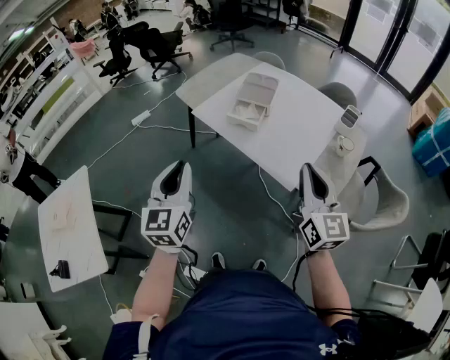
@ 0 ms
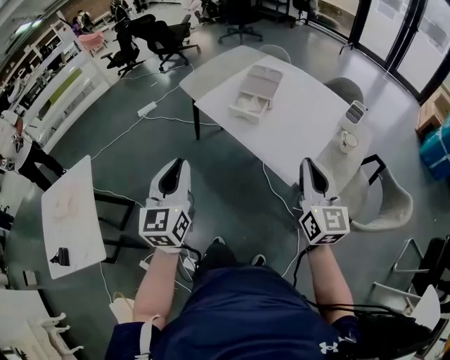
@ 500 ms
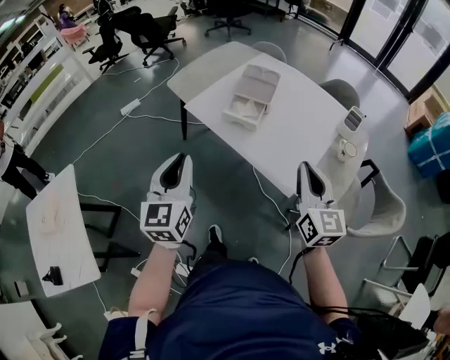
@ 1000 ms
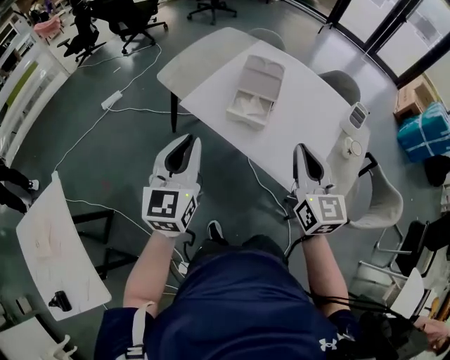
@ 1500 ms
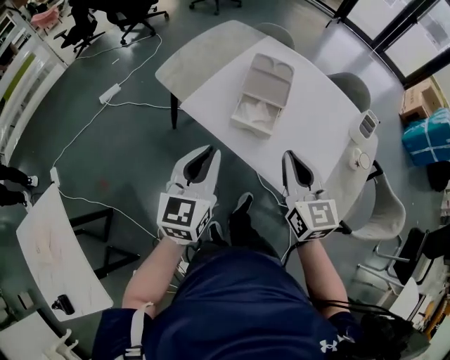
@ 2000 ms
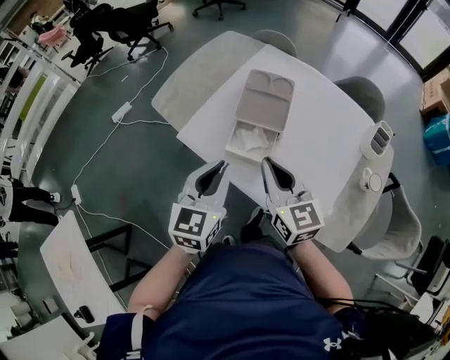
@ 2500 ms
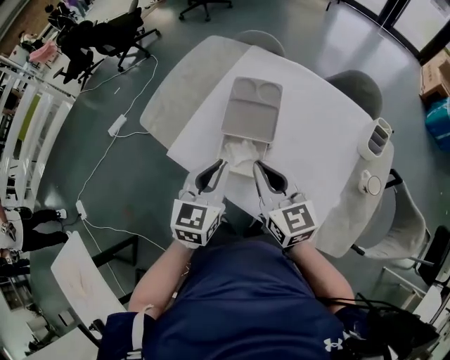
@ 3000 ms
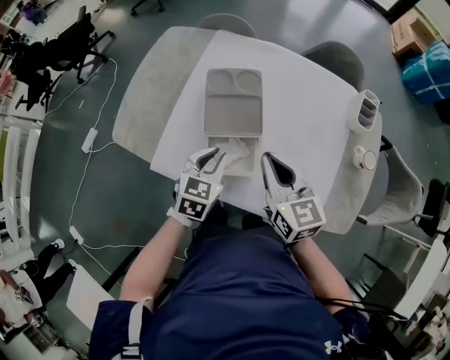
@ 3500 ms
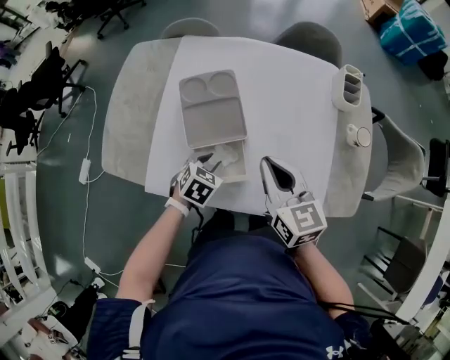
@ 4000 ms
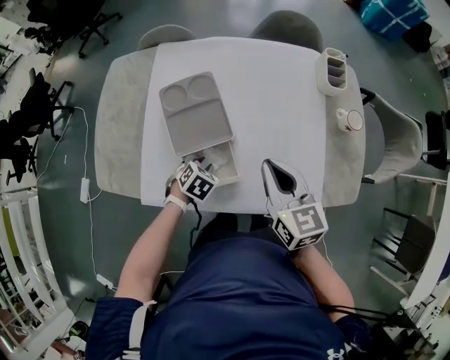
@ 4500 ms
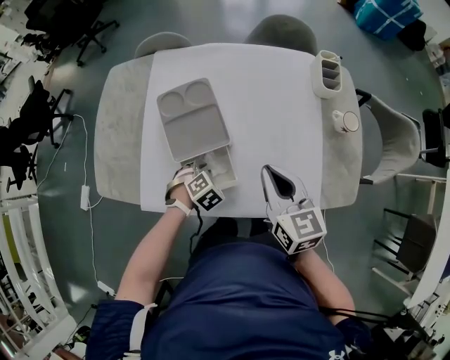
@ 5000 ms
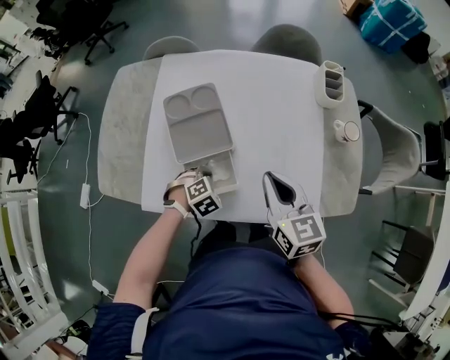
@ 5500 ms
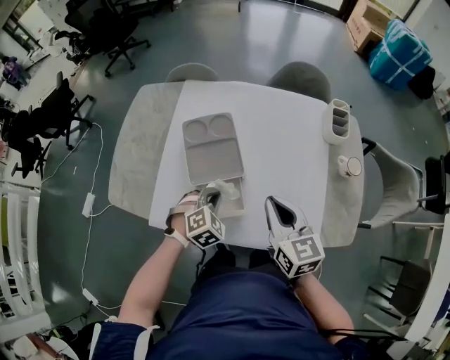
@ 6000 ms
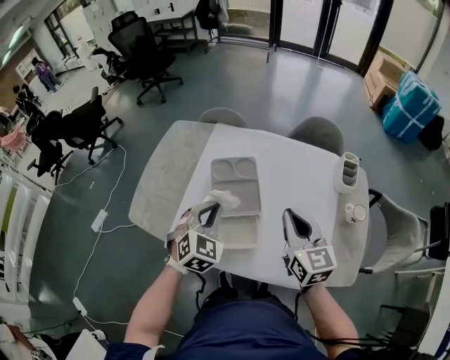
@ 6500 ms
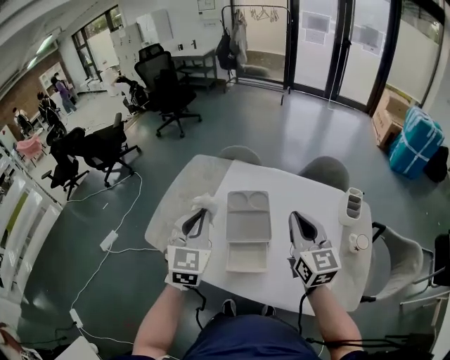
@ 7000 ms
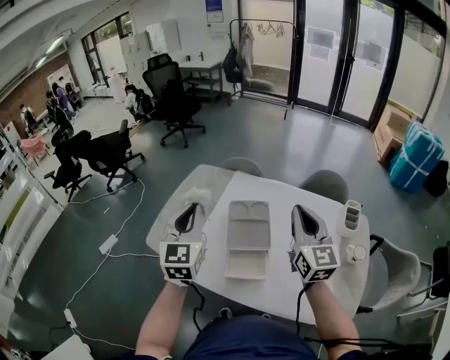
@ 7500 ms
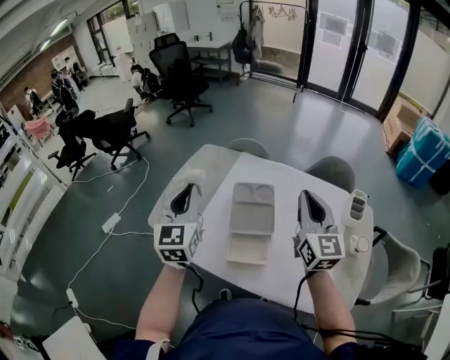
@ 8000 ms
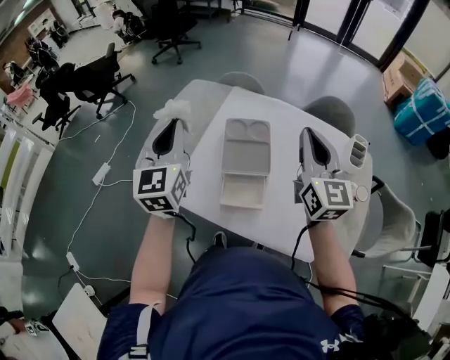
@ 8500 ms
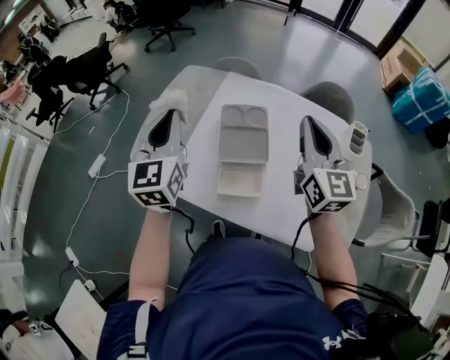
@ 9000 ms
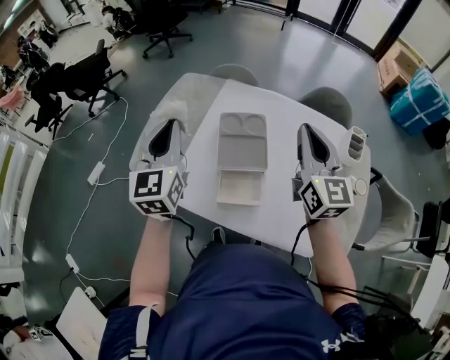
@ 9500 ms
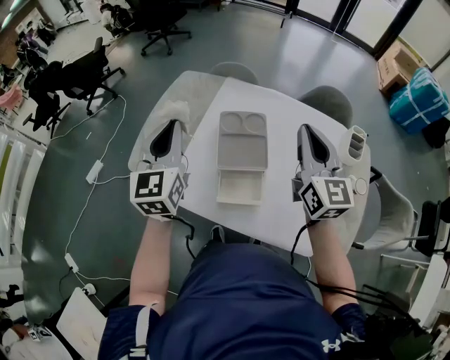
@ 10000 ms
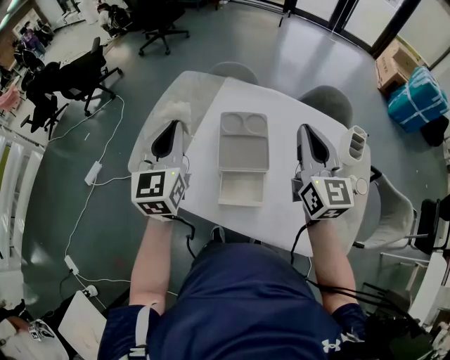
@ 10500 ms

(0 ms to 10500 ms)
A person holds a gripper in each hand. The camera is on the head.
0 ms - 2000 ms: The left gripper is displaced forward by roughly 25 cm. Meanwhile the right gripper heads forward and to the left, covering some 25 cm.
2000 ms - 4000 ms: The left gripper travels downward by some 25 cm, tips its fingers downward by approximately 50 degrees, and opens its fingers; the right gripper changes place by roughly 20 cm, and turns by some 30 degrees.
4000 ms - 6500 ms: The left gripper moves upward, some 20 cm, swivels roughly 40 degrees, and closes. The right gripper goes some 5 cm upward.
6500 ms - 8500 ms: The left gripper travels upward and to the left by approximately 20 cm, and turns by about 50 degrees, while the right gripper travels upward and forward by some 15 cm.
8500 ms - 10500 ms: There are only small adjustments of the grippers.

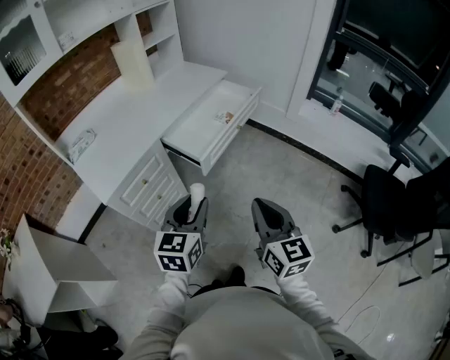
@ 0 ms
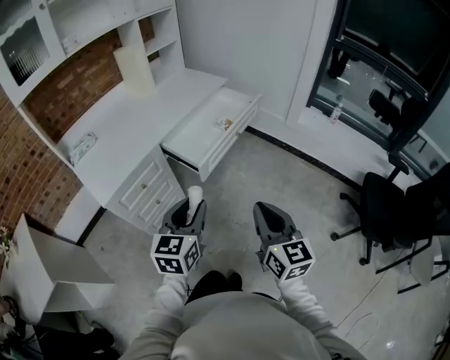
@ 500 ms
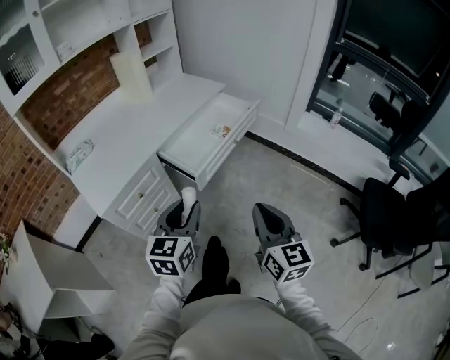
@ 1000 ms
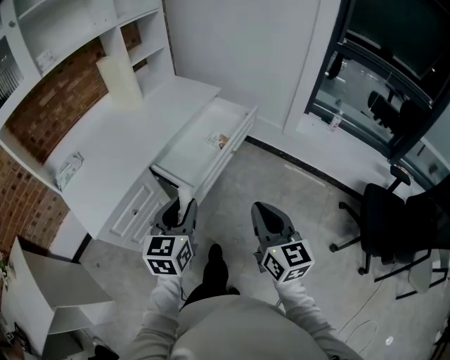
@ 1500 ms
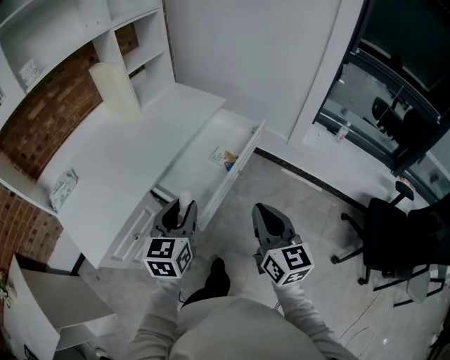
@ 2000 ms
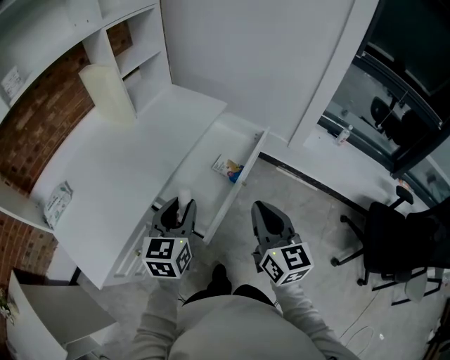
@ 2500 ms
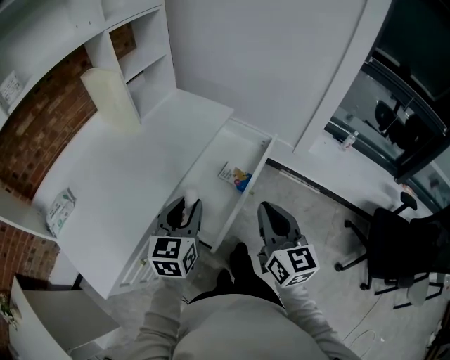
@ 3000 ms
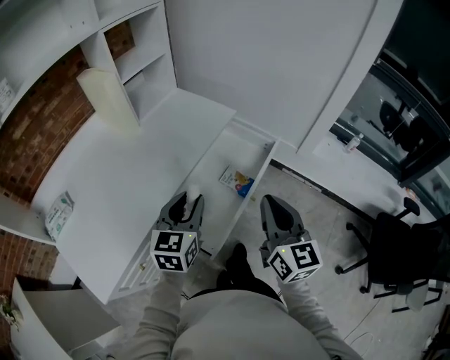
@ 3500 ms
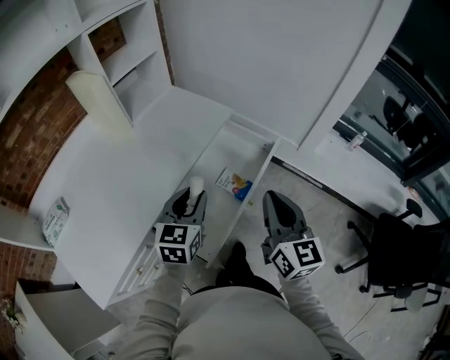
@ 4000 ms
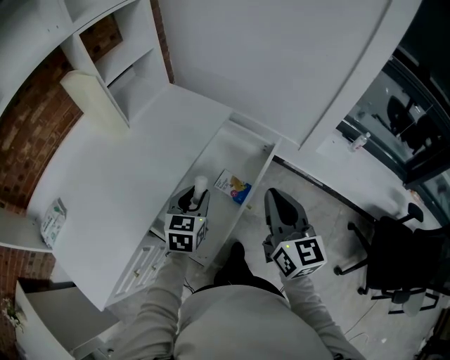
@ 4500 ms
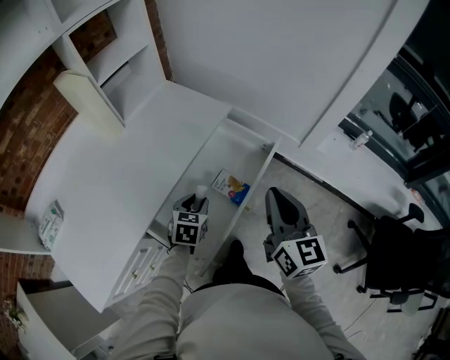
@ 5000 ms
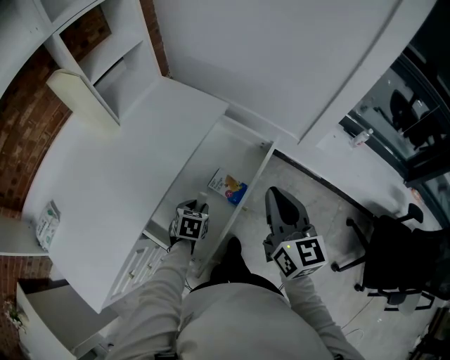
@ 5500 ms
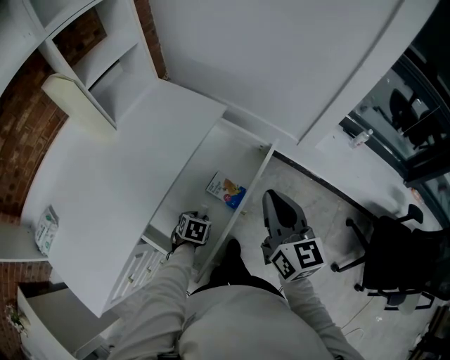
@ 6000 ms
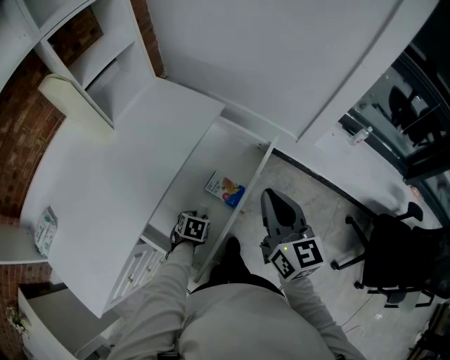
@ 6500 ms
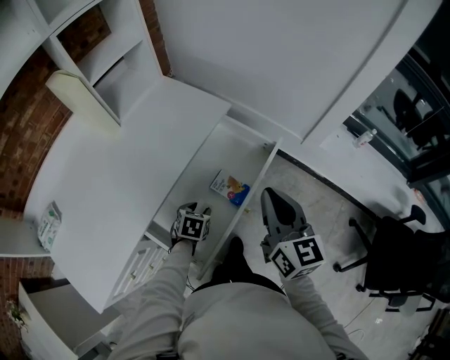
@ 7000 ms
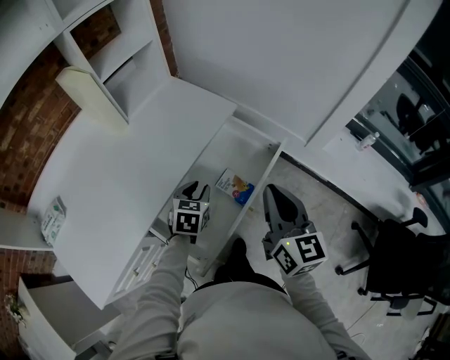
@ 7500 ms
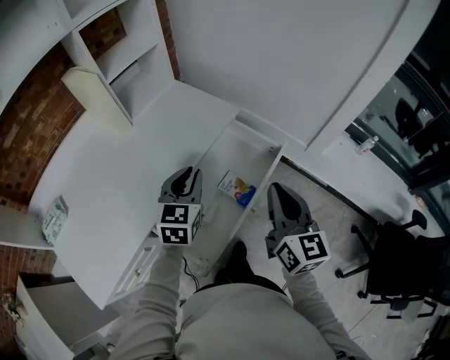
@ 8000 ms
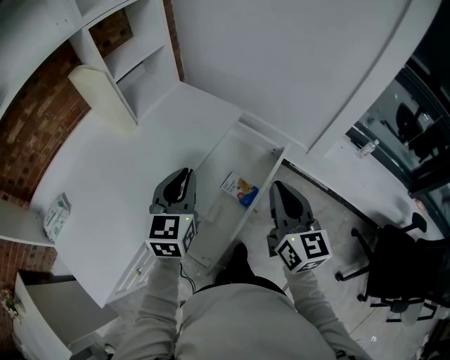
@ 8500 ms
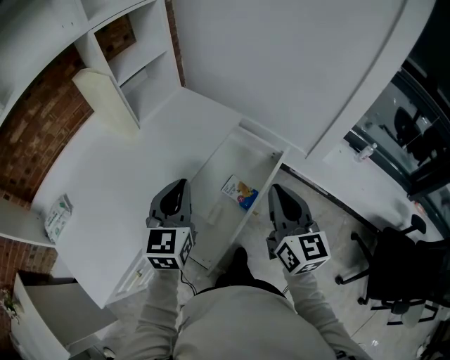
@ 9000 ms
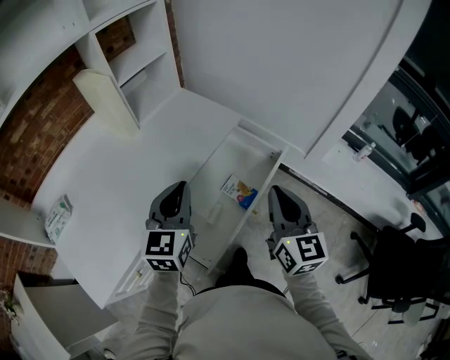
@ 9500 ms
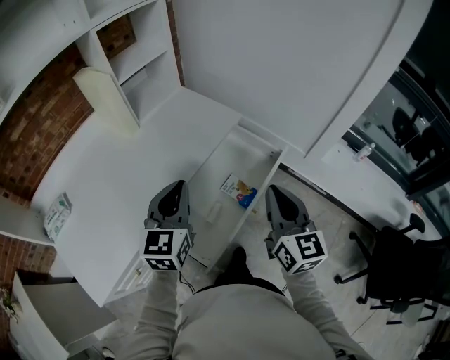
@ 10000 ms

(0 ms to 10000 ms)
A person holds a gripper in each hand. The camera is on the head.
0 ms - 2000 ms: The two grippers go roughly 25 cm forward.
2000 ms - 4000 ms: The grippers both shift forward by about 20 cm.
4000 ms - 6000 ms: The right gripper is displaced forward by some 10 cm. The left gripper goes about 30 cm downward, and tilts its fingers roughly 40 degrees downward.
6000 ms - 8000 ms: The left gripper goes about 30 cm upward, and tips its fingers upward by approximately 40 degrees.
8000 ms - 10000 ms: The left gripper travels backward and upward by some 10 cm.

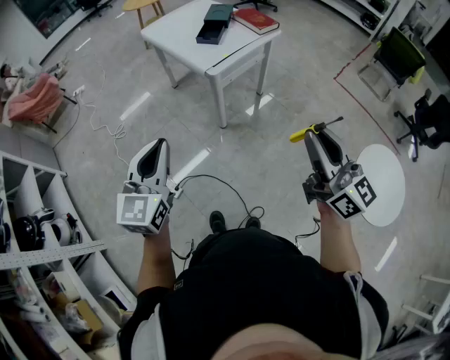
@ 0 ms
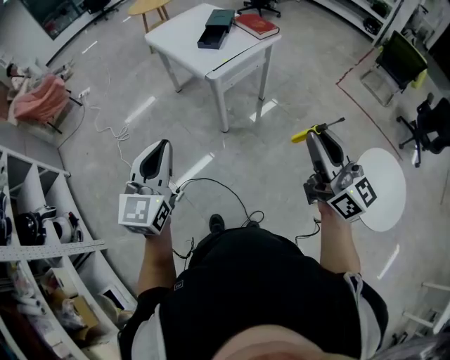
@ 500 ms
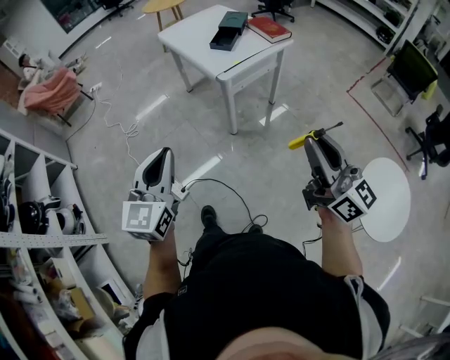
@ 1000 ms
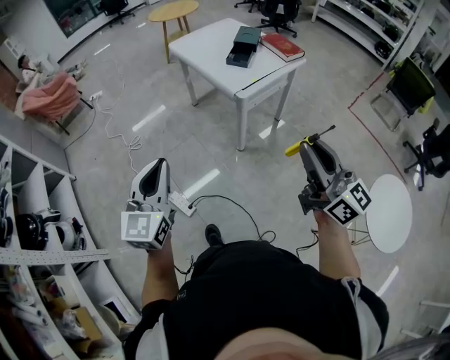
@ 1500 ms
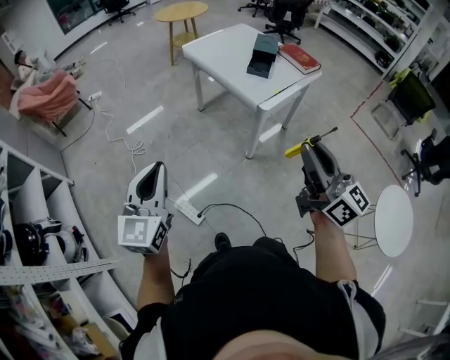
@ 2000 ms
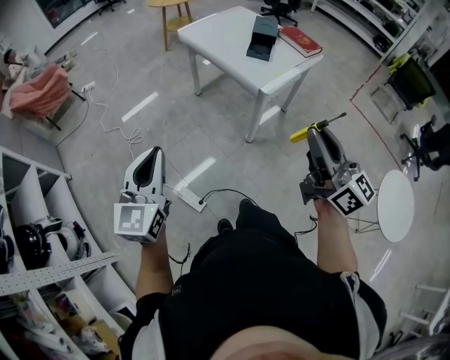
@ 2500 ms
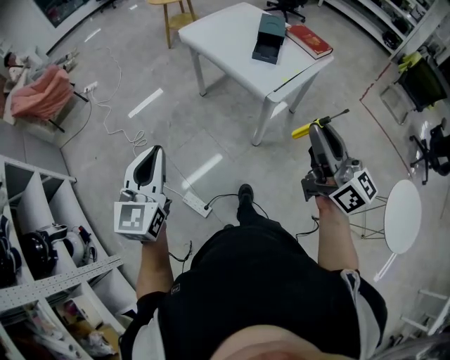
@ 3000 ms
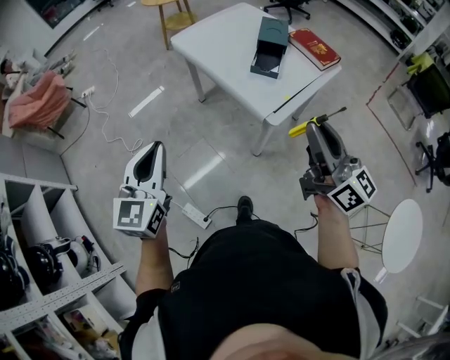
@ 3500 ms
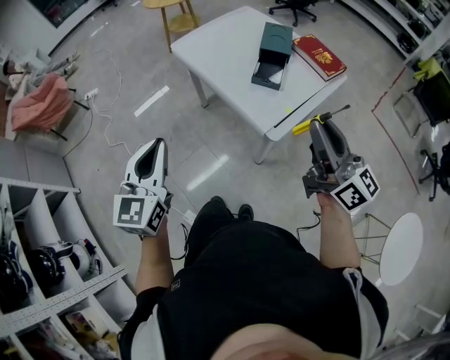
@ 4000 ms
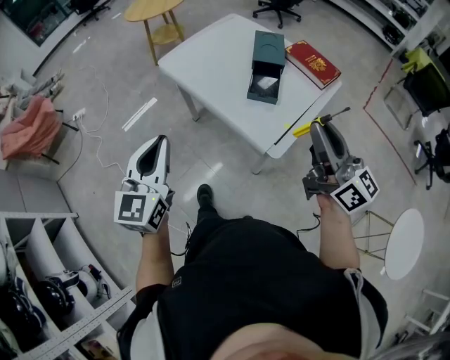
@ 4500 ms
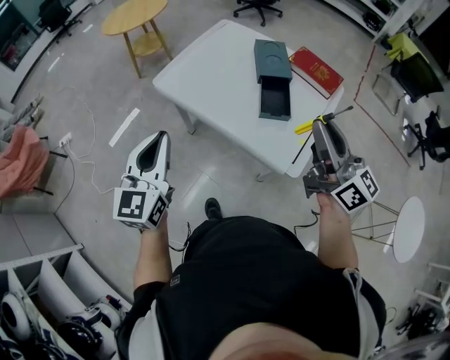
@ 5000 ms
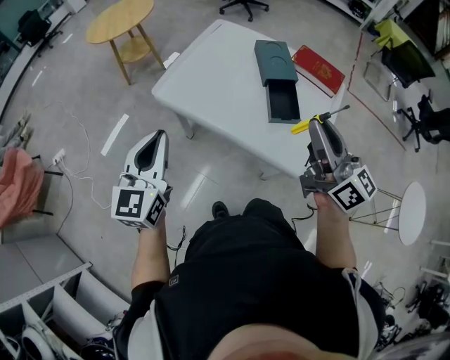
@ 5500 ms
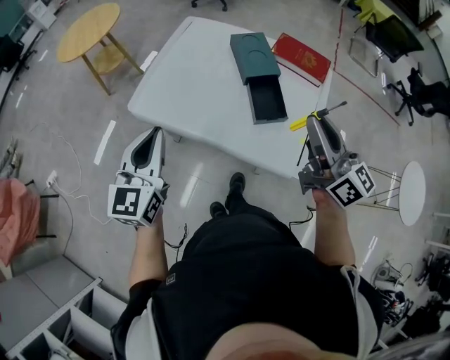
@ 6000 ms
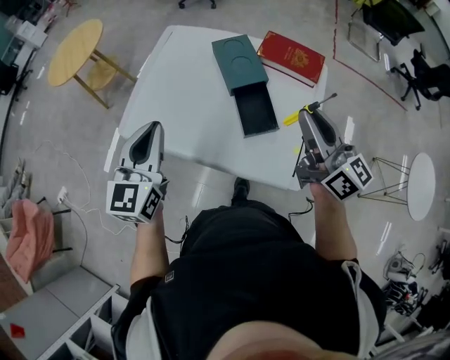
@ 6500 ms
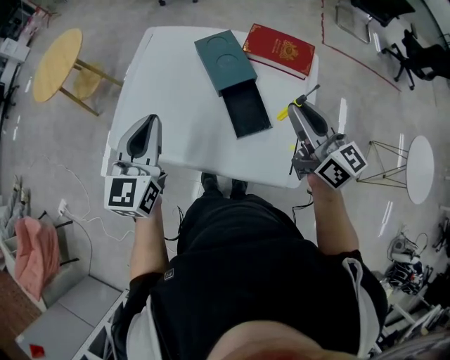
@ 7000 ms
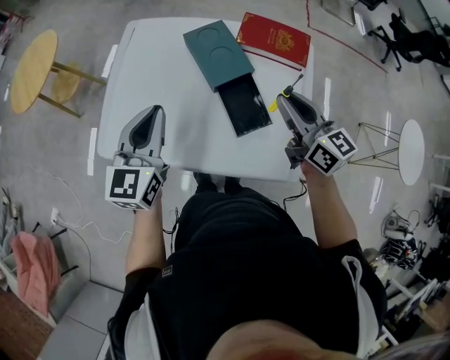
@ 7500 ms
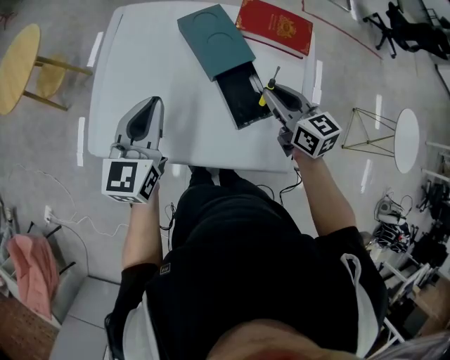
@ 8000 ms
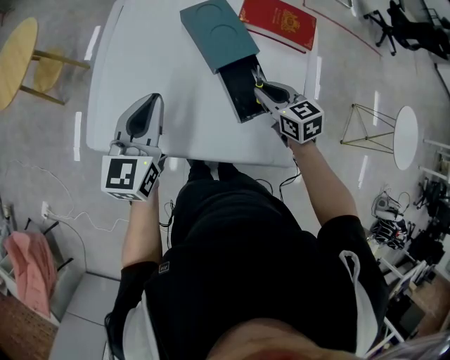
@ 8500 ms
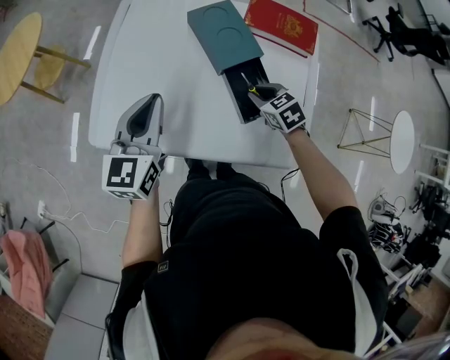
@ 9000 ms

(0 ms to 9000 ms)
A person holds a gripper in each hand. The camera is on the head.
0 ms - 2000 ms: Both grippers move to the left and forward, some 25 cm.
2000 ms - 4500 ms: The two grippers travel together, forward, about 40 cm.
4500 ms - 7000 ms: The left gripper ends up roughly 40 cm from where it was, and changes its angle by some 30 degrees. Meanwhile the right gripper ends up some 30 cm from where it was, and changes its angle by roughly 30 degrees.
7000 ms - 9000 ms: The left gripper goes some 10 cm downward and forward. The right gripper shifts about 25 cm downward, and points its fingers roughly 60 degrees further downward.
